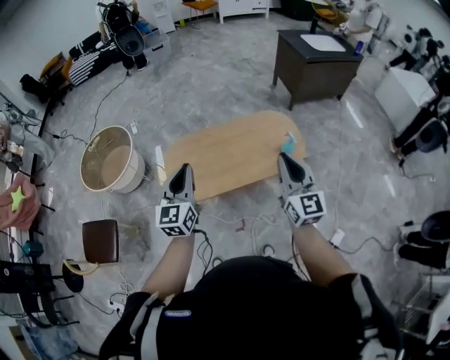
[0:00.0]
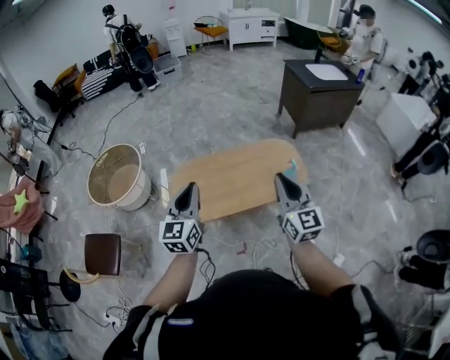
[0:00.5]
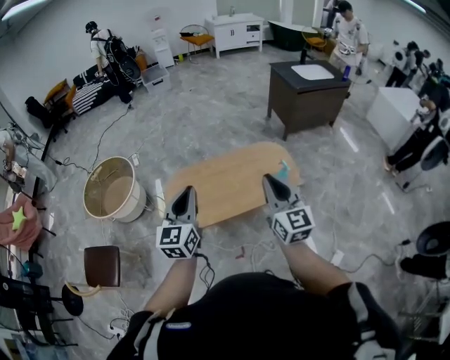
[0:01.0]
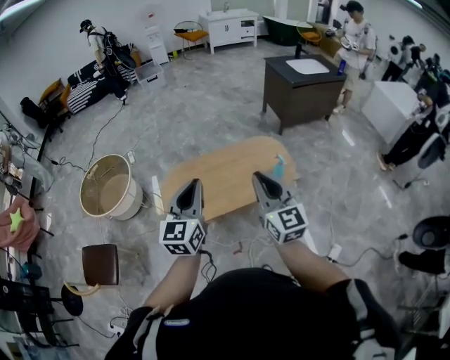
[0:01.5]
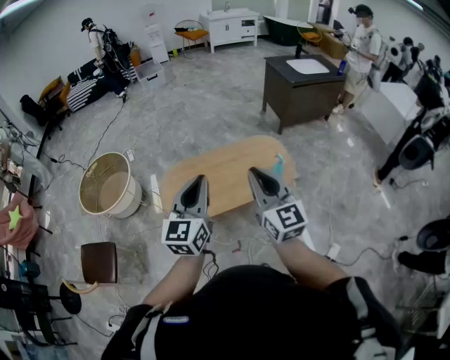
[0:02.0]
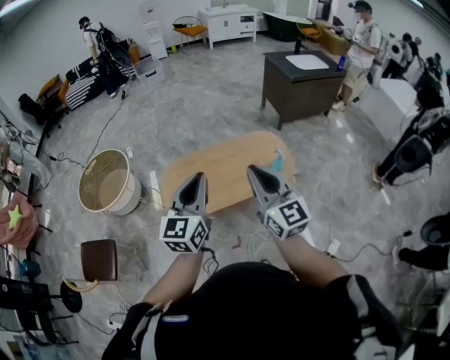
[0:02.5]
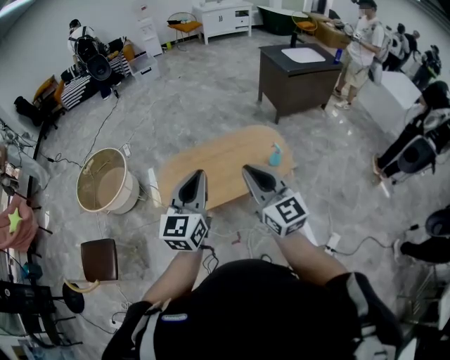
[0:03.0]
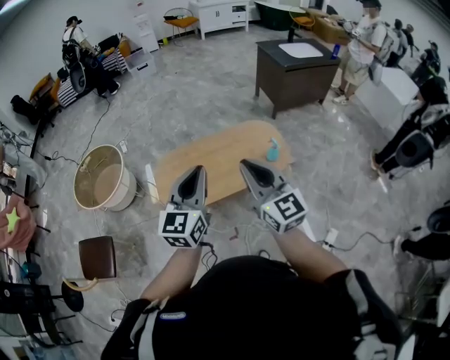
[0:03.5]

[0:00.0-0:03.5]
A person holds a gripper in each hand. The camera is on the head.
0:00.0 to 0:02.0: The right gripper travels upward and to the left by roughly 10 cm; the left gripper shifts about 10 cm upward and to the right.
0:02.0 to 0:03.5: The grippers make only small movements.

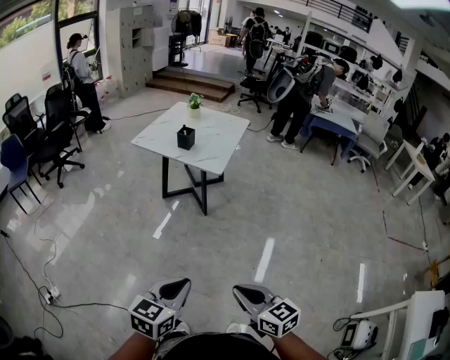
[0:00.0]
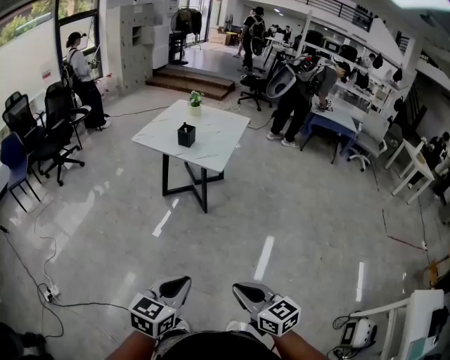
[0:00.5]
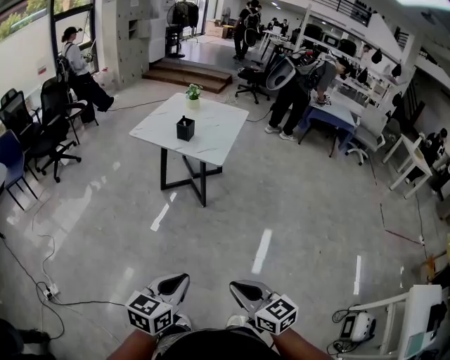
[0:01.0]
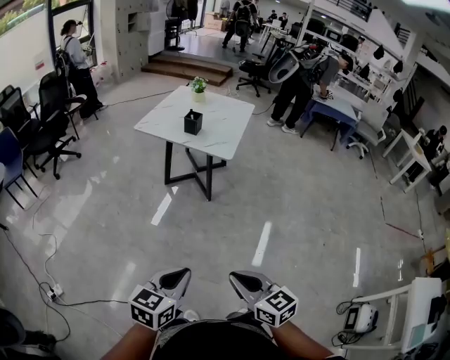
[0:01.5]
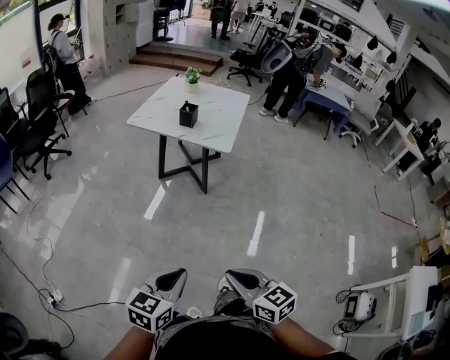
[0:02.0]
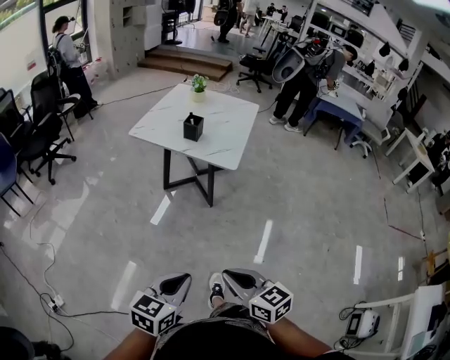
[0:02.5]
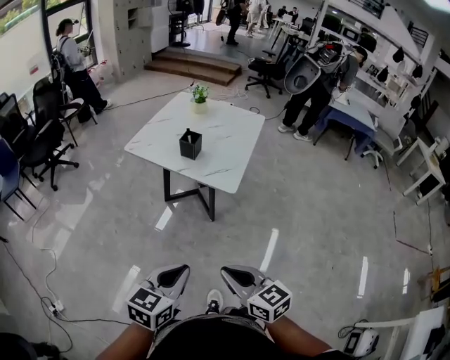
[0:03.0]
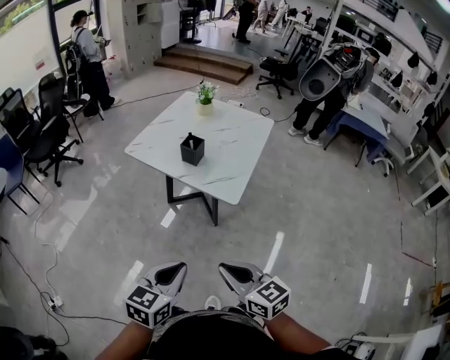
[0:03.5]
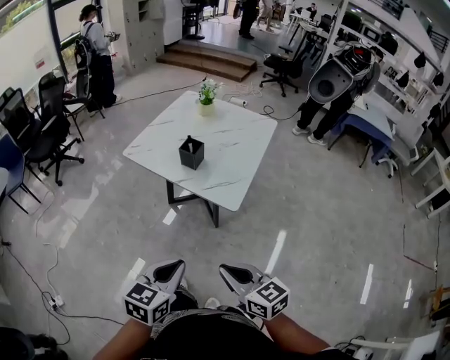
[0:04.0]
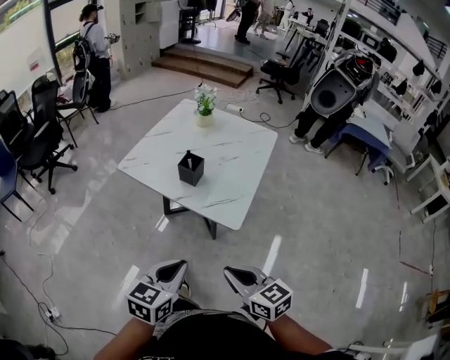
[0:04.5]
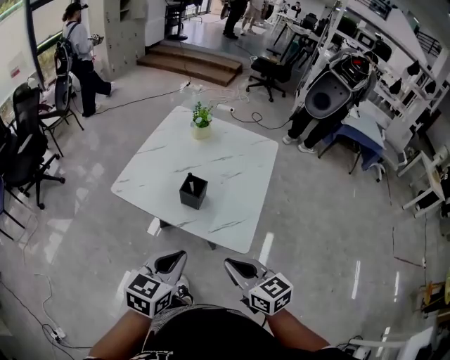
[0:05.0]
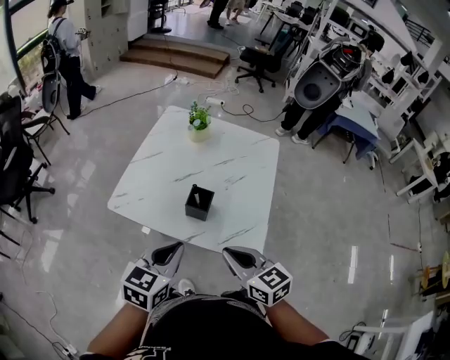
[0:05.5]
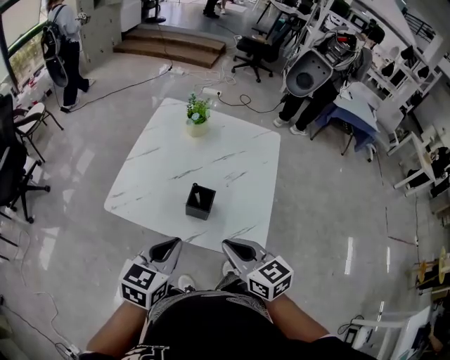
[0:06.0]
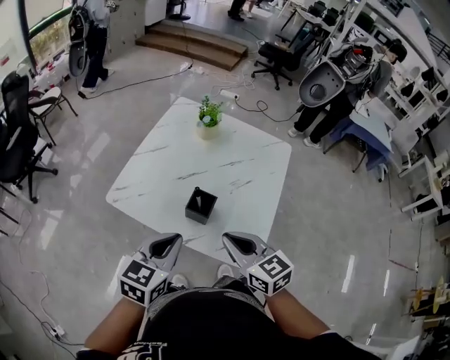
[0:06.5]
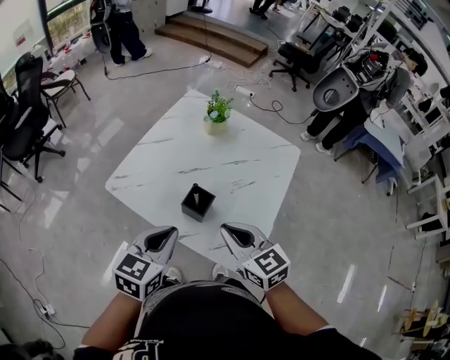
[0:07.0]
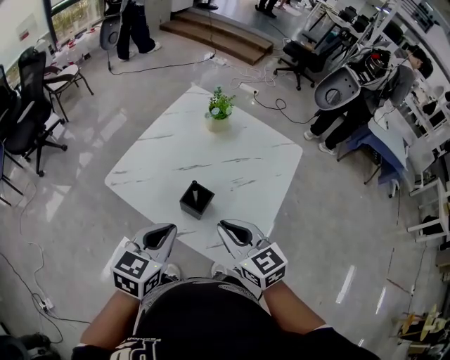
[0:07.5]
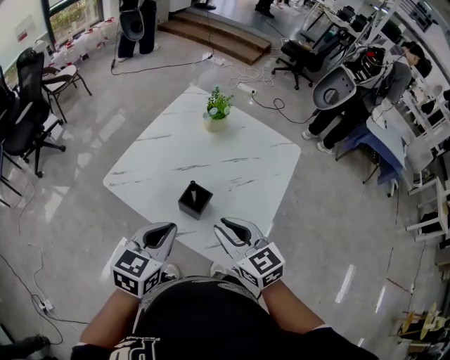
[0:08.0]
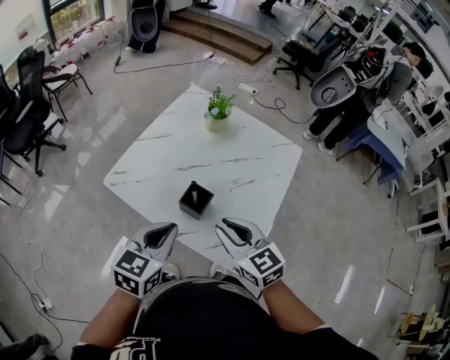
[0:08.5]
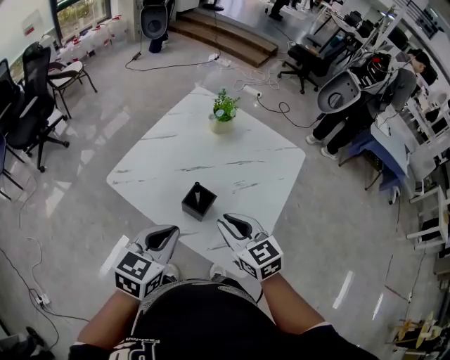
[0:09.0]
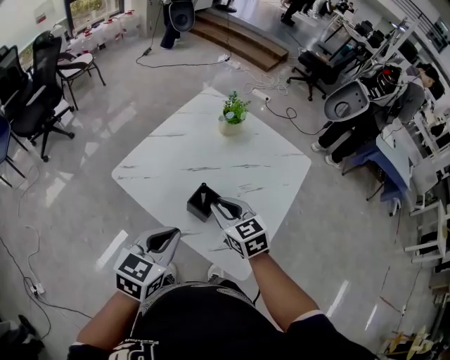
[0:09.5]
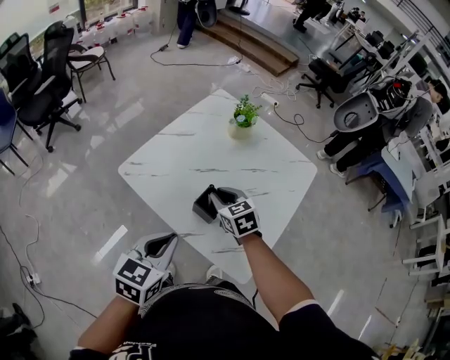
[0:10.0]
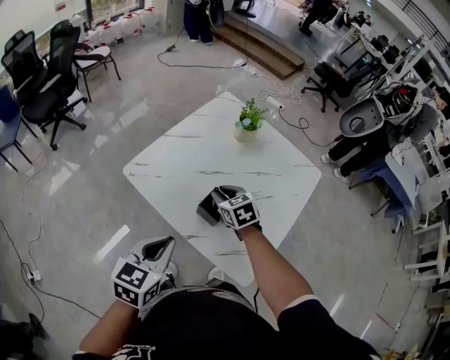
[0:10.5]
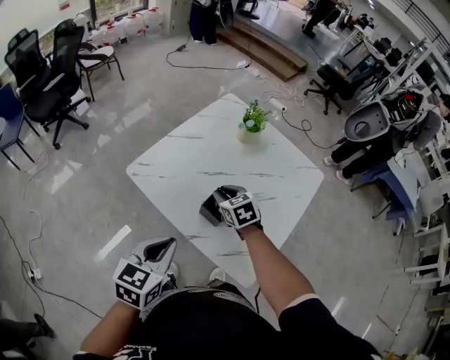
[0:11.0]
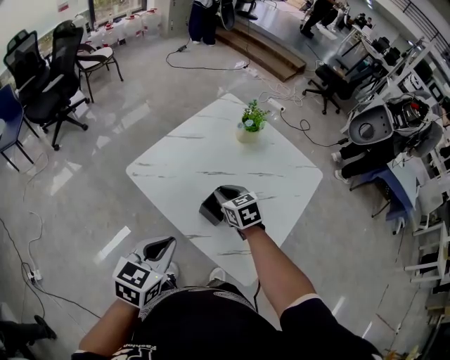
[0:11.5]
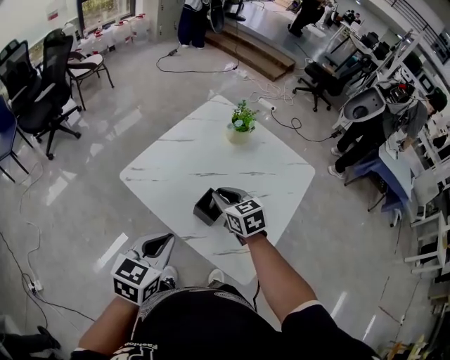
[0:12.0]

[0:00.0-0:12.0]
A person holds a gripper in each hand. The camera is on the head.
0:00.0 to 0:02.0: Both grippers travel together to the left, some 15 cm.
0:02.0 to 0:04.0: The two grippers go about 35 cm forward.
0:04.0 to 0:06.0: The two grippers go some 35 cm forward.
0:06.0 to 0:08.0: The right gripper goes roughly 5 cm forward. Meanwhile the left gripper changes place by approximately 5 cm.
0:08.0 to 0:10.0: The right gripper is displaced forward and downward by about 15 cm.
0:10.0 to 0:12.0: The grippers move only a little.

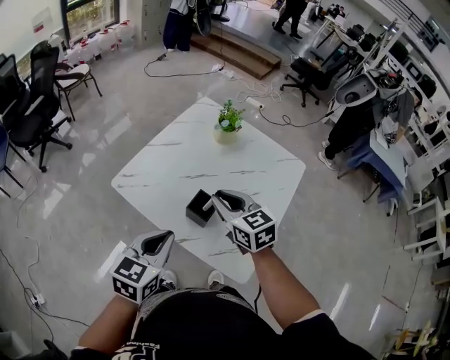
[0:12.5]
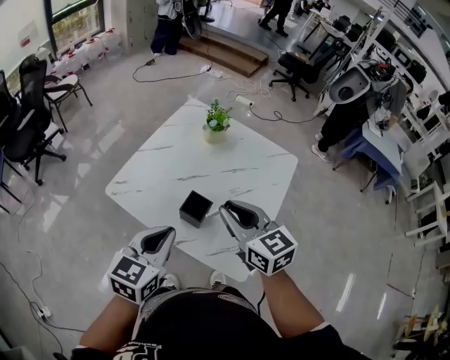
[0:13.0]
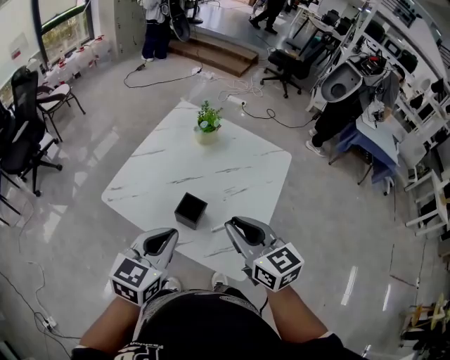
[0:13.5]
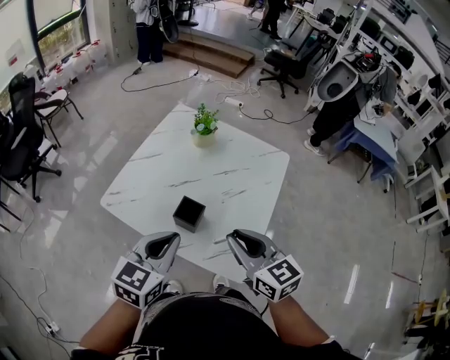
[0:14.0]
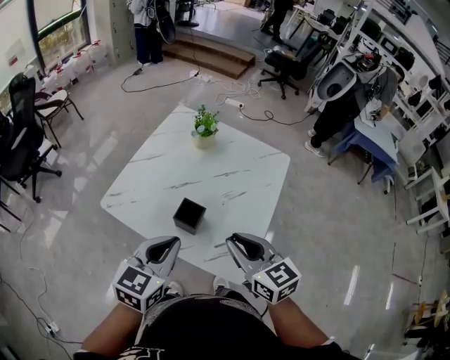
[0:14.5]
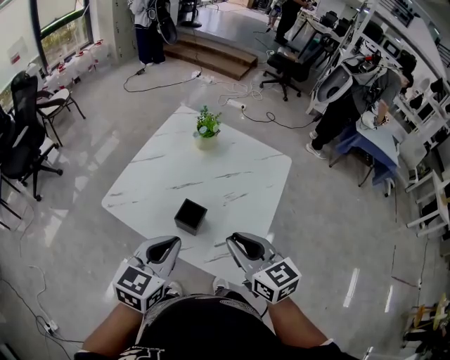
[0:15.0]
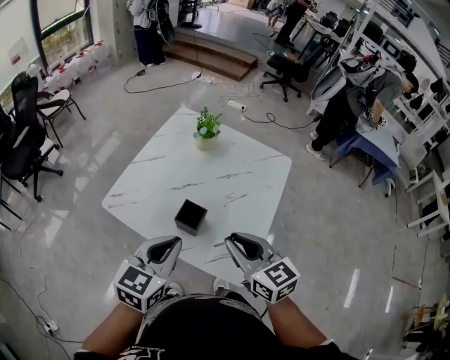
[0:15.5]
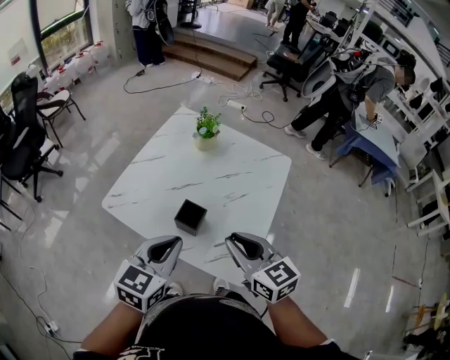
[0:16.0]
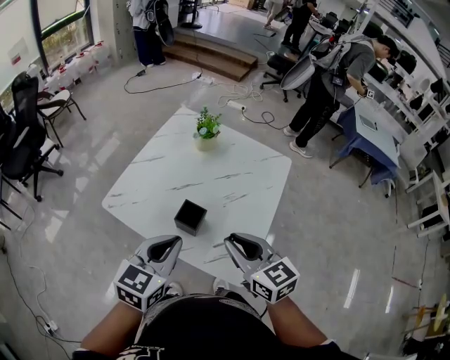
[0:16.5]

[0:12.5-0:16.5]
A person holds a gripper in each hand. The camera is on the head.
0:12.5 to 0:14.5: The left gripper travels to the right by about 5 cm; the right gripper moves backward and to the right, approximately 15 cm.
0:14.5 to 0:16.5: The two grippers keep their place.

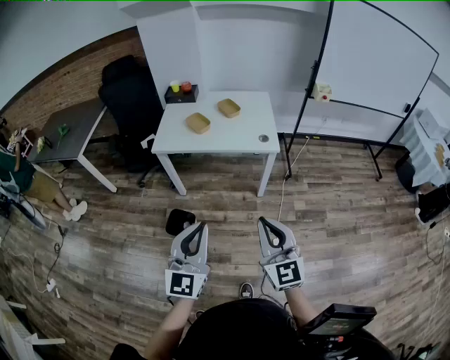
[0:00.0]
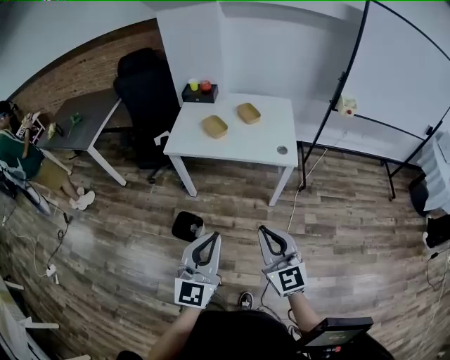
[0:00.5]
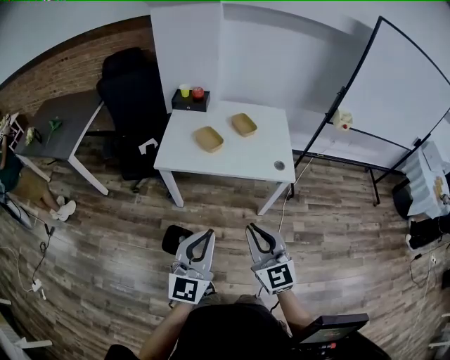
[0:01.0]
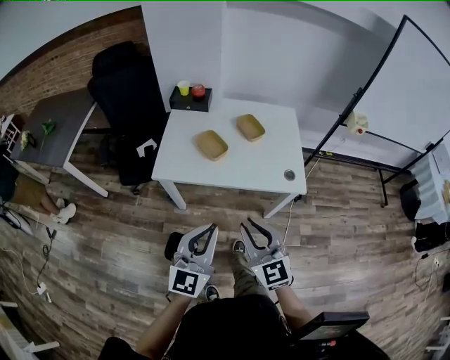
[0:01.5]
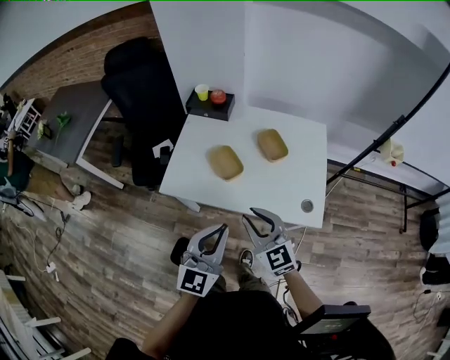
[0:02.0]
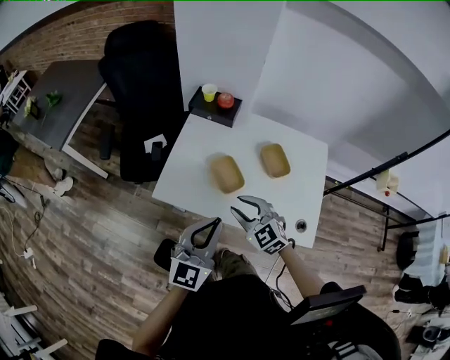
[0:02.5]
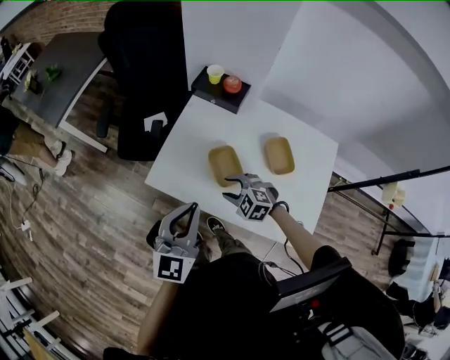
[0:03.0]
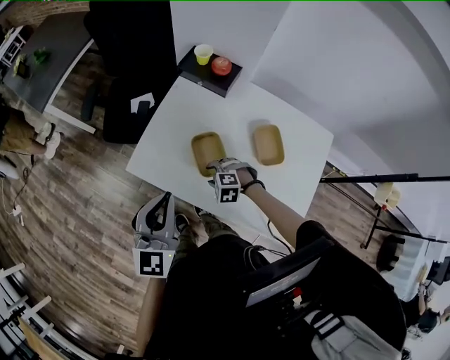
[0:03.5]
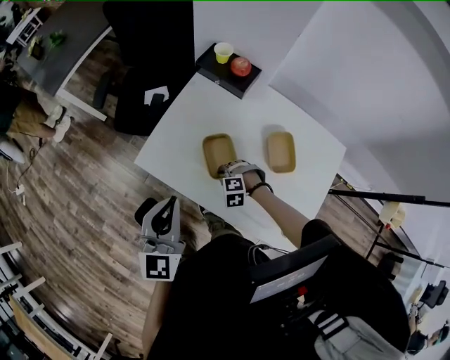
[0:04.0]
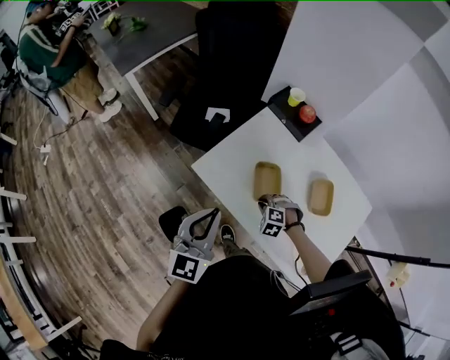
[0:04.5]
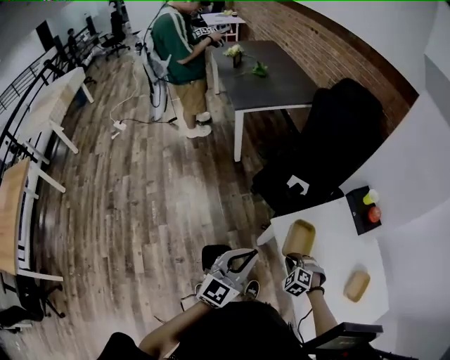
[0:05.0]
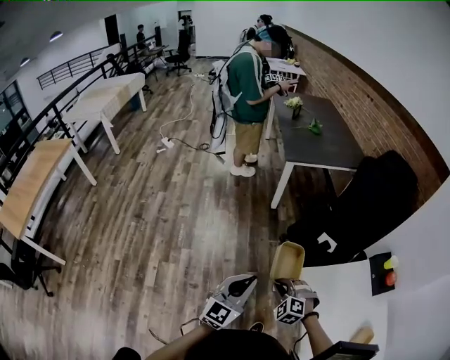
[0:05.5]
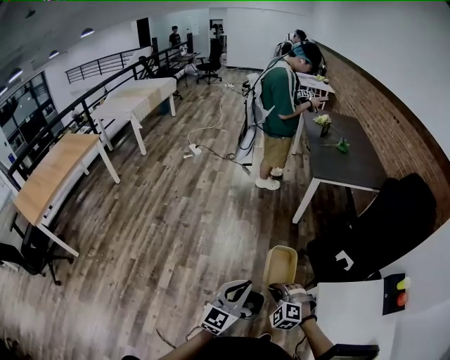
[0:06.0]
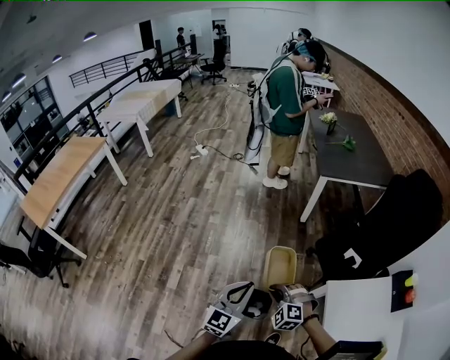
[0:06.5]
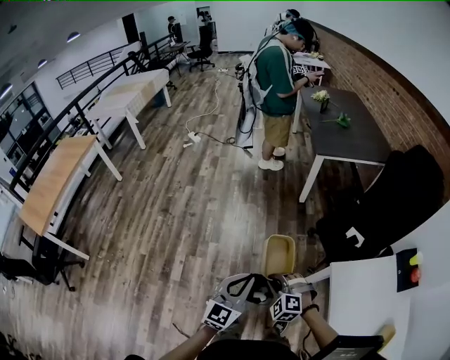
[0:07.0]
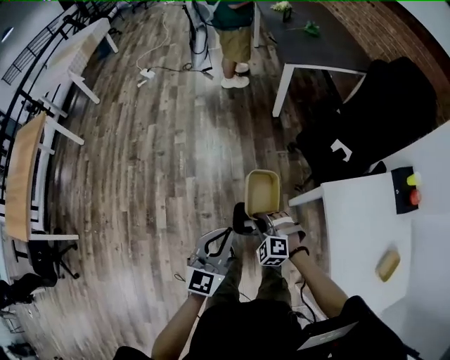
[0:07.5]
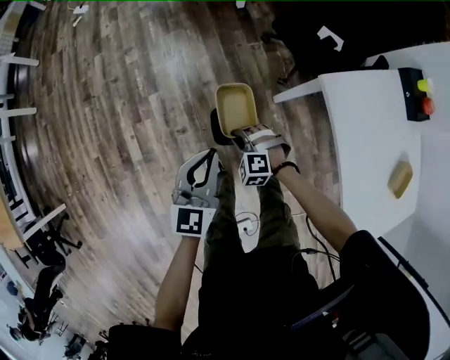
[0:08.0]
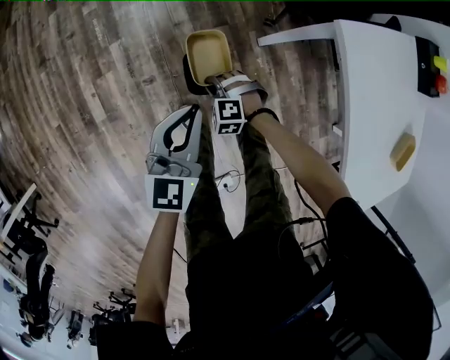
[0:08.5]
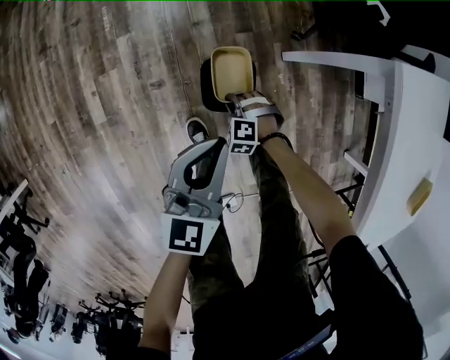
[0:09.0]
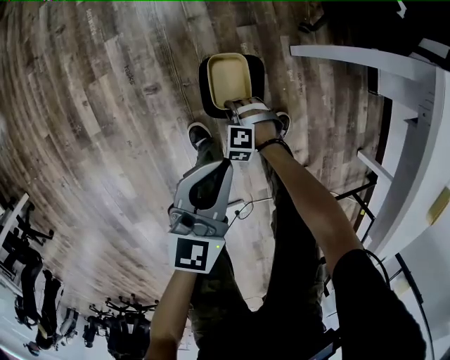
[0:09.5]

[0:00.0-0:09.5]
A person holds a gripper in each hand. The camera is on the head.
0:00.0 to 0:02.0: Both grippers are carried forward, about 50 cm. The right gripper rotates approximately 30 degrees, and opens its fingers.
0:02.0 to 0:04.0: The left gripper moves roughly 20 cm, and swivels about 30 degrees. Meanwhile the right gripper shifts approximately 30 cm downward, tips its fingers downward by about 60 degrees, and opens, then closes once more.
0:04.0 to 0:05.5: The right gripper ends up roughly 50 cm from where it was, and swivels some 40 degrees. The left gripper moves roughly 40 cm, and swivels some 30 degrees.
0:05.5 to 0:07.5: The grippers both shift to the left and downward by roughly 15 cm.
0:07.5 to 0:09.5: Both grippers travel together downward, about 50 cm. The right gripper changes its angle by some 30 degrees.
